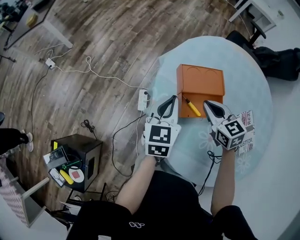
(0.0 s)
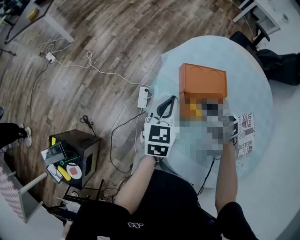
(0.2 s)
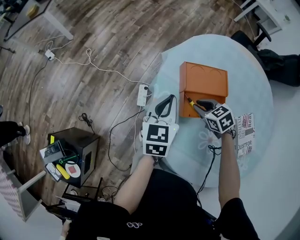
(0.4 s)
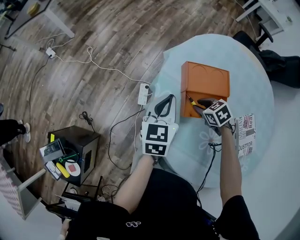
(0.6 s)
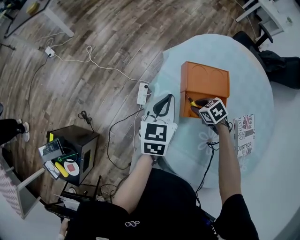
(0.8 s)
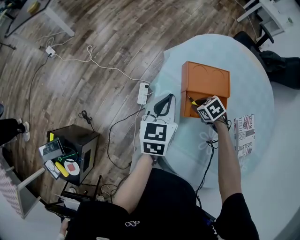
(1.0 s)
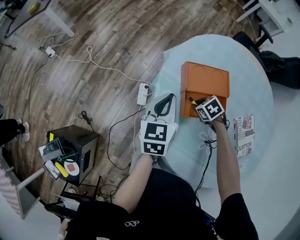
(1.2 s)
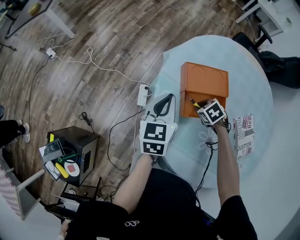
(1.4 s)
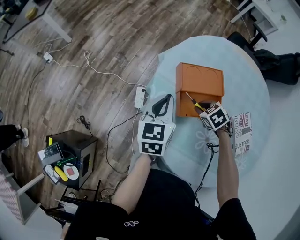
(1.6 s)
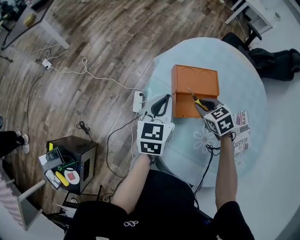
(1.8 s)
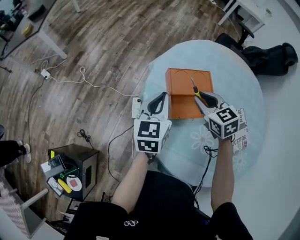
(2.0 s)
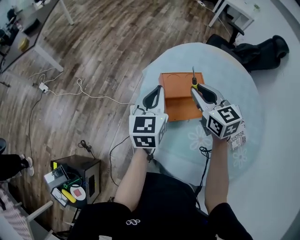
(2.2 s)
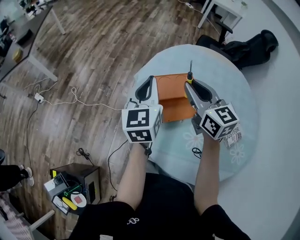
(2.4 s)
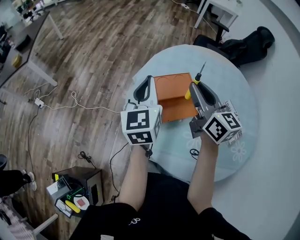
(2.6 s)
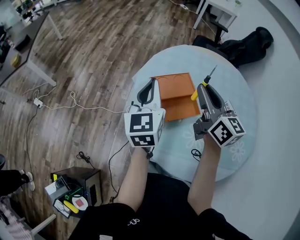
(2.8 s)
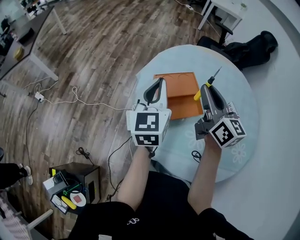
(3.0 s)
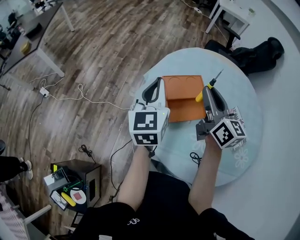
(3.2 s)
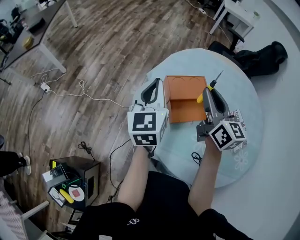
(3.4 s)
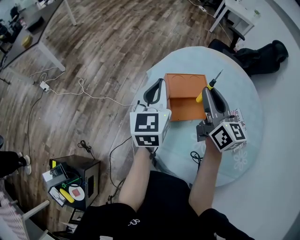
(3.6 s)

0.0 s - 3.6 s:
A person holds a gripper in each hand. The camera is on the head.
0.0 s - 1.8 s: The right gripper moves roughly 20 cm downward and comes back, and rotates some 20 degrees.
1.8 s - 3.6 s: The left gripper goes about 10 cm upward, while the right gripper shifts some 25 cm upward, and tips its fingers upward by roughly 60 degrees.

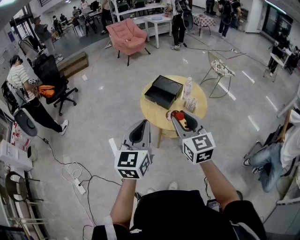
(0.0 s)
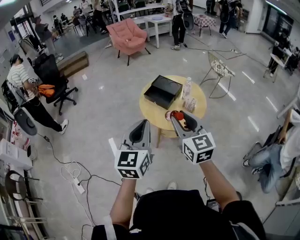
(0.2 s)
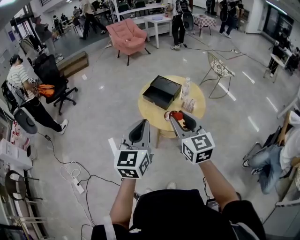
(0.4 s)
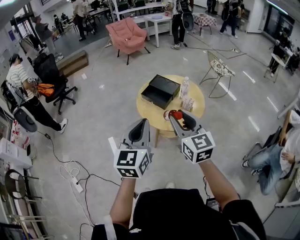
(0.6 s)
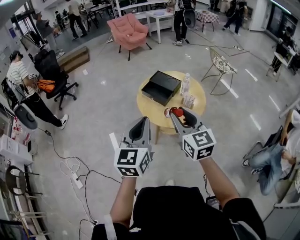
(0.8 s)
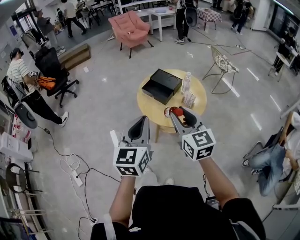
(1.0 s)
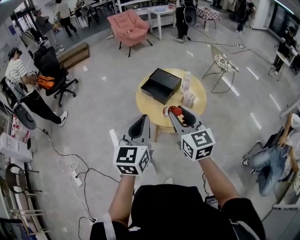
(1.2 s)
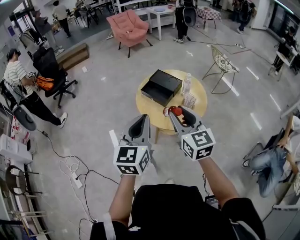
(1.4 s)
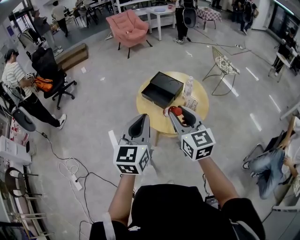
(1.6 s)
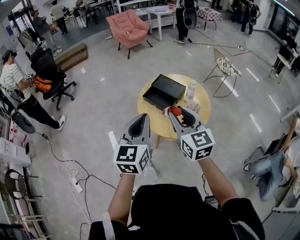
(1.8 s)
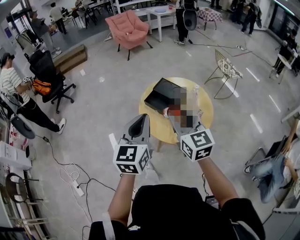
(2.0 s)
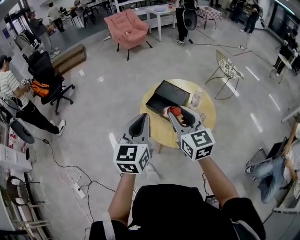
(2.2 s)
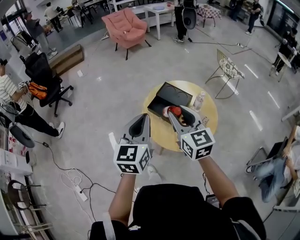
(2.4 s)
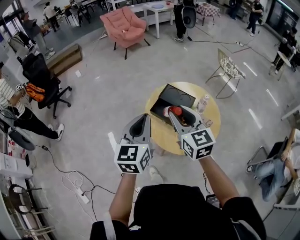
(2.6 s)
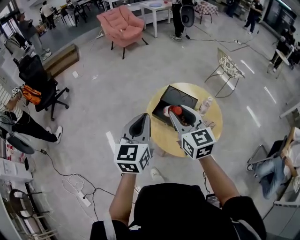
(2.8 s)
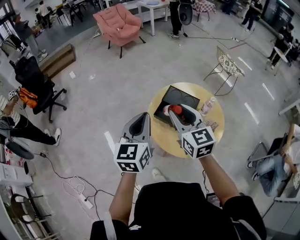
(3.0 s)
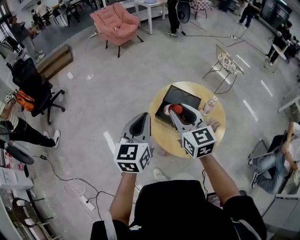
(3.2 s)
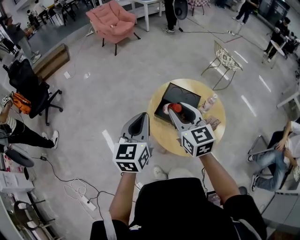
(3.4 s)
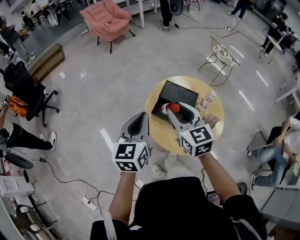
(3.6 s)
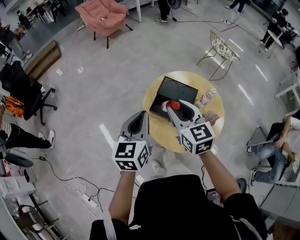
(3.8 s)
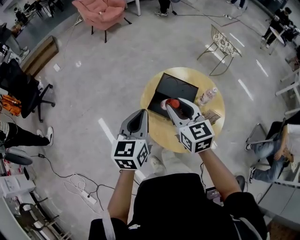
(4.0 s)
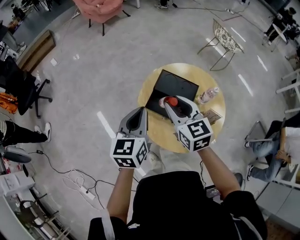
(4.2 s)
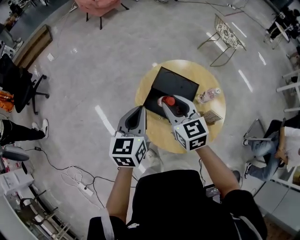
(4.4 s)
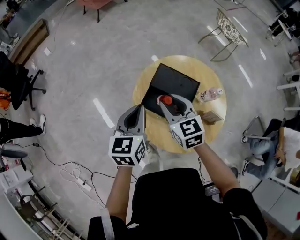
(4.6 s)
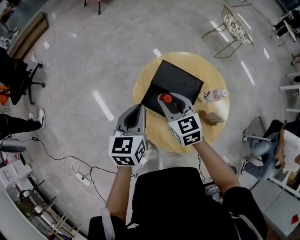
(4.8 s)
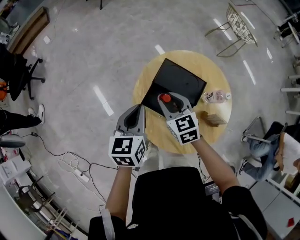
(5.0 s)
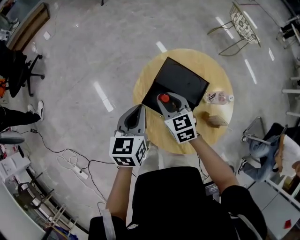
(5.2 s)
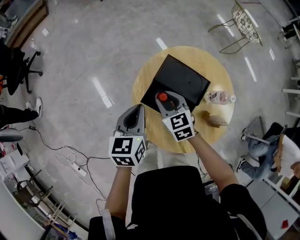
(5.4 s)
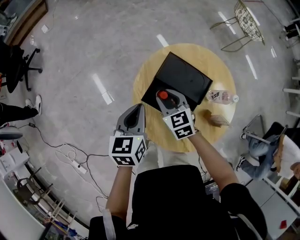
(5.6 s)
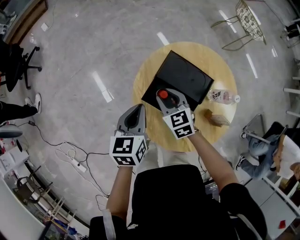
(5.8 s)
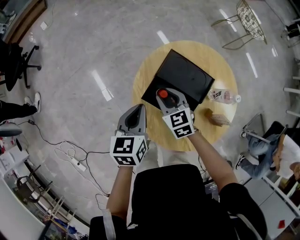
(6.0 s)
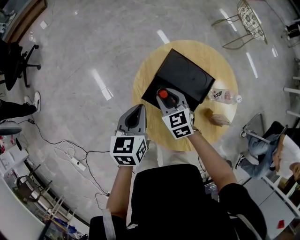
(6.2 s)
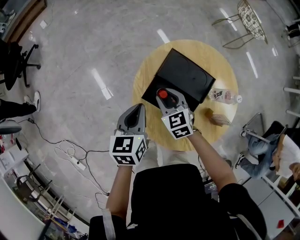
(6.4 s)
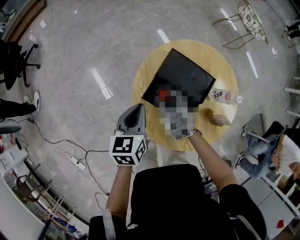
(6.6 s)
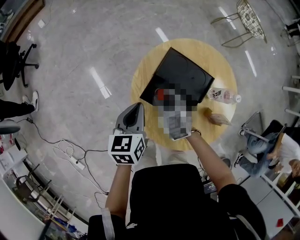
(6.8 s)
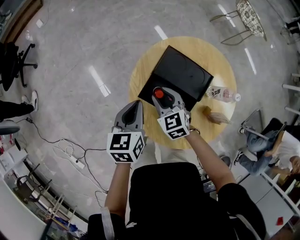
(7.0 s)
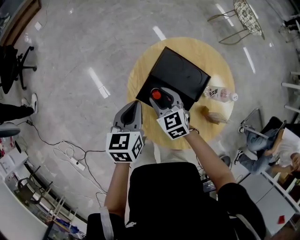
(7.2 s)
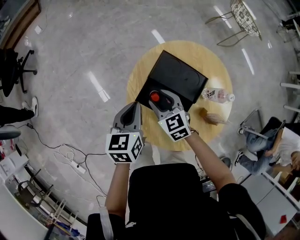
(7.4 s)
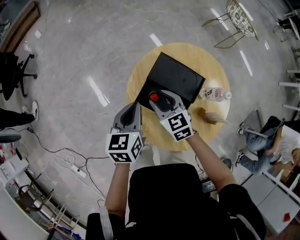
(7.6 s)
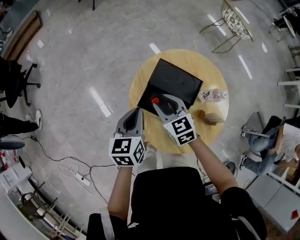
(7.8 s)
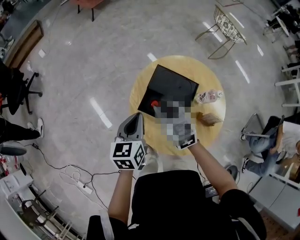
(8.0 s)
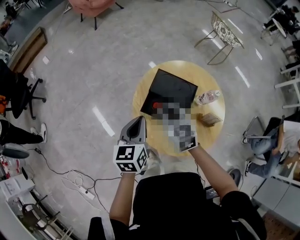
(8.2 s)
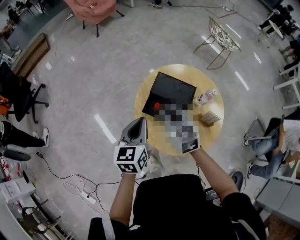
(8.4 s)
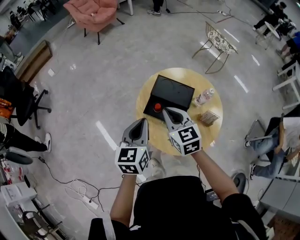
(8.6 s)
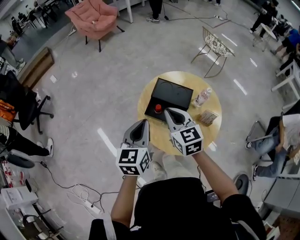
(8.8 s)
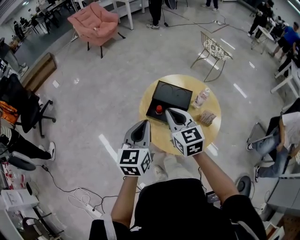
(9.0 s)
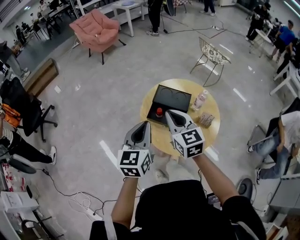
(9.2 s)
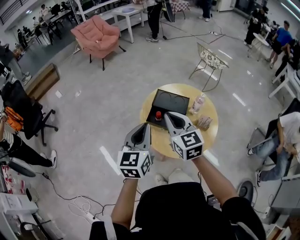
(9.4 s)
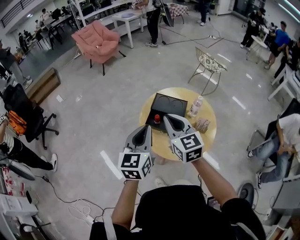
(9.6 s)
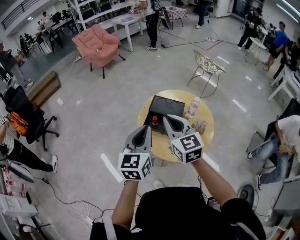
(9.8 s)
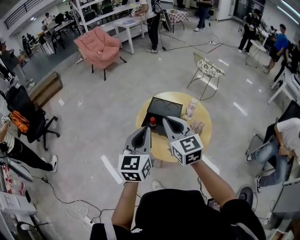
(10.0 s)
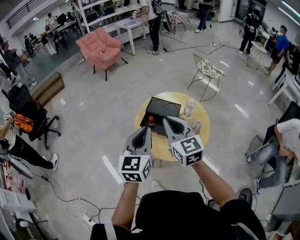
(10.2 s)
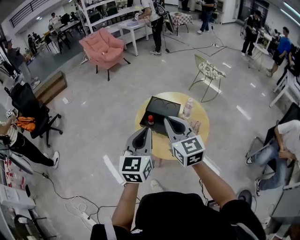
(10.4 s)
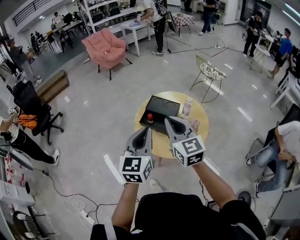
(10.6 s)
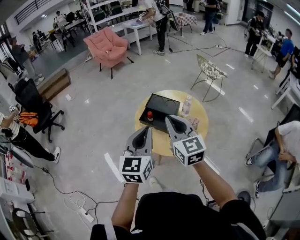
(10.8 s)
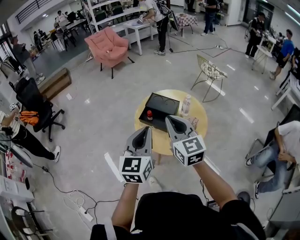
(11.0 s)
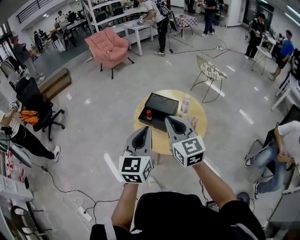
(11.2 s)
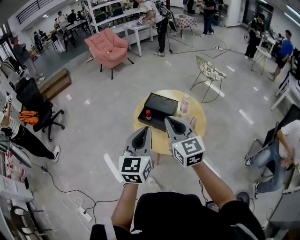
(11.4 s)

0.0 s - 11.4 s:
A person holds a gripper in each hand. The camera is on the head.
0.0 s - 1.4 s: The left gripper ends up about 5 cm from where it was; the right gripper ends up roughly 5 cm from where it was.
1.4 s - 2.8 s: The two grippers go approximately 30 cm forward and to the left.
2.8 s - 4.2 s: The two grippers go roughly 15 cm forward and downward.
4.2 s - 5.6 s: The left gripper goes some 15 cm downward and forward, while the right gripper travels downward by some 20 cm, and changes its angle by about 20 degrees.
5.6 s - 7.2 s: There are only small adjustments of the grippers.
7.2 s - 8.6 s: Both grippers move upward and backward, some 20 cm. The right gripper turns by approximately 20 degrees, and closes.
8.6 s - 10.0 s: The left gripper moves upward, backward and to the right, some 15 cm, while the right gripper travels upward and backward by roughly 20 cm.
10.0 s - 11.4 s: Both grippers move backward and to the right, roughly 10 cm.

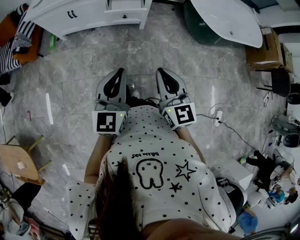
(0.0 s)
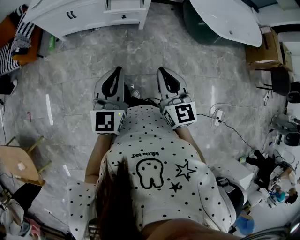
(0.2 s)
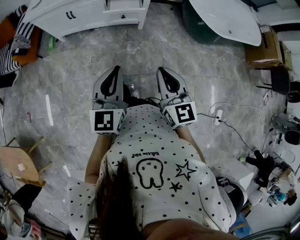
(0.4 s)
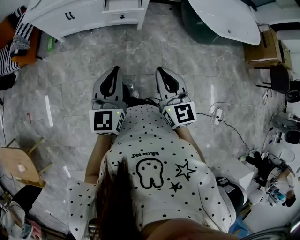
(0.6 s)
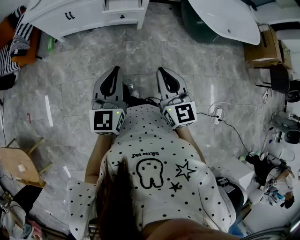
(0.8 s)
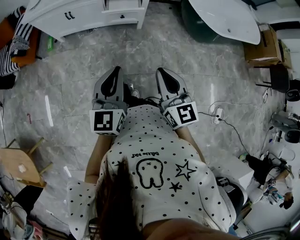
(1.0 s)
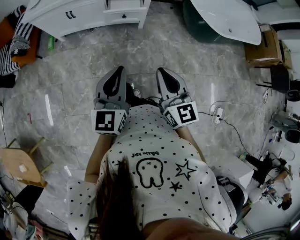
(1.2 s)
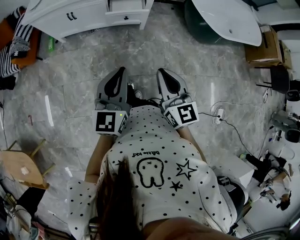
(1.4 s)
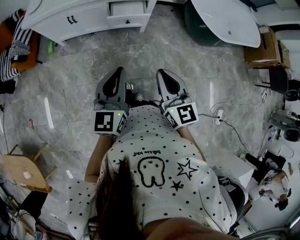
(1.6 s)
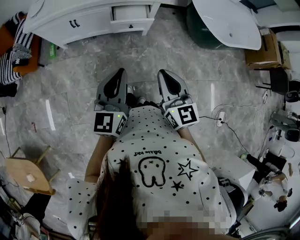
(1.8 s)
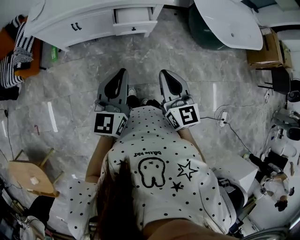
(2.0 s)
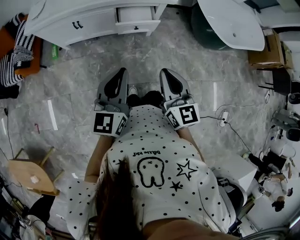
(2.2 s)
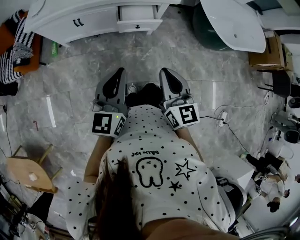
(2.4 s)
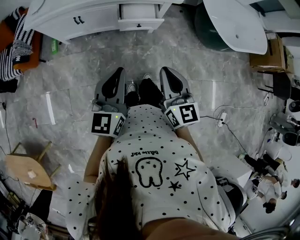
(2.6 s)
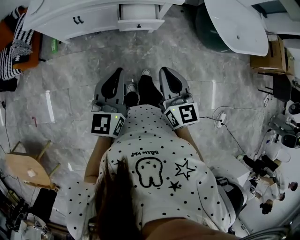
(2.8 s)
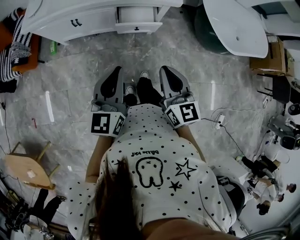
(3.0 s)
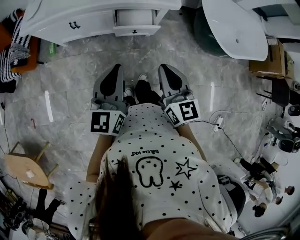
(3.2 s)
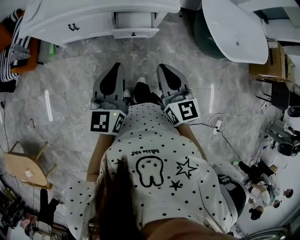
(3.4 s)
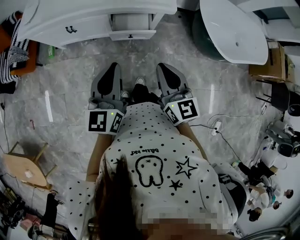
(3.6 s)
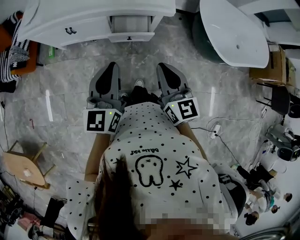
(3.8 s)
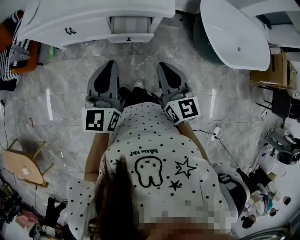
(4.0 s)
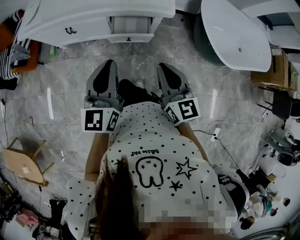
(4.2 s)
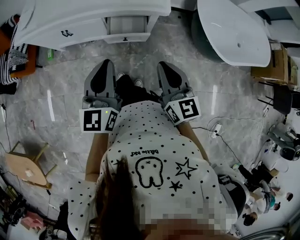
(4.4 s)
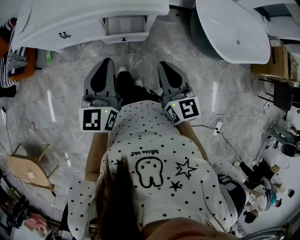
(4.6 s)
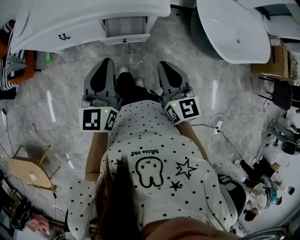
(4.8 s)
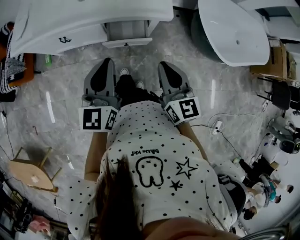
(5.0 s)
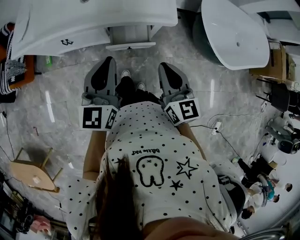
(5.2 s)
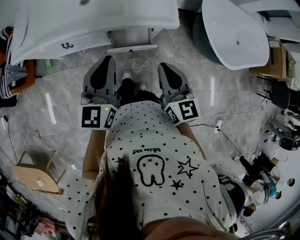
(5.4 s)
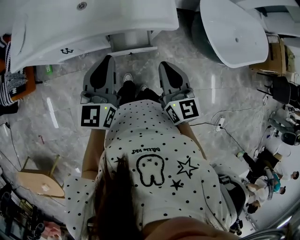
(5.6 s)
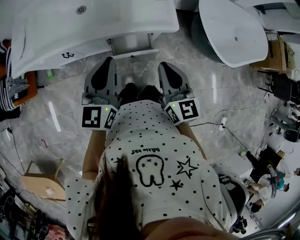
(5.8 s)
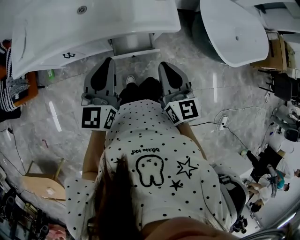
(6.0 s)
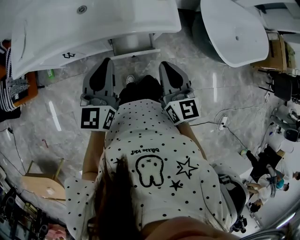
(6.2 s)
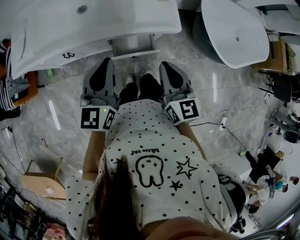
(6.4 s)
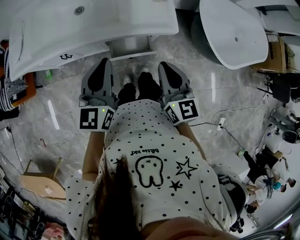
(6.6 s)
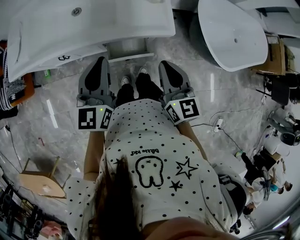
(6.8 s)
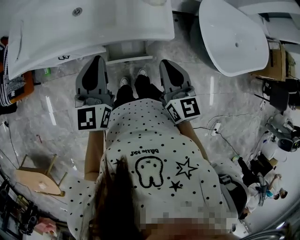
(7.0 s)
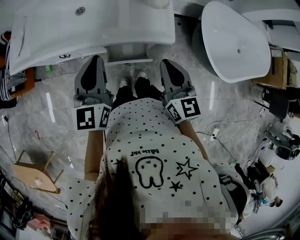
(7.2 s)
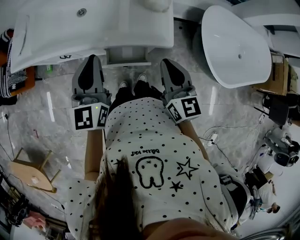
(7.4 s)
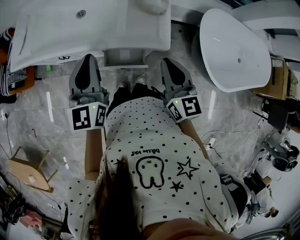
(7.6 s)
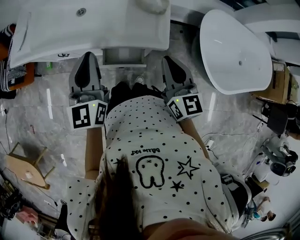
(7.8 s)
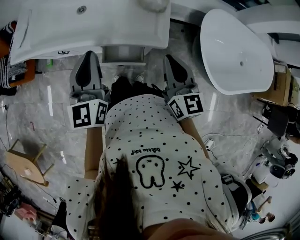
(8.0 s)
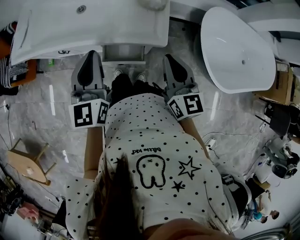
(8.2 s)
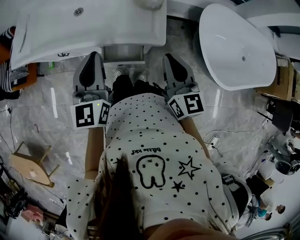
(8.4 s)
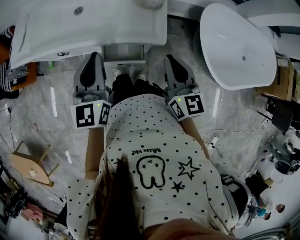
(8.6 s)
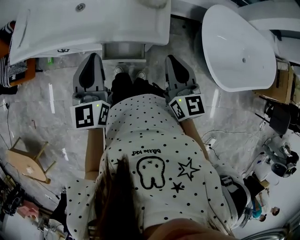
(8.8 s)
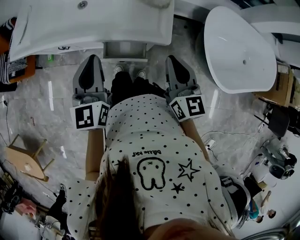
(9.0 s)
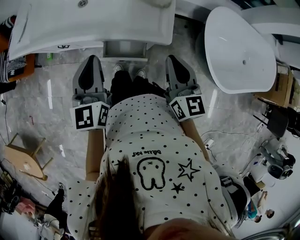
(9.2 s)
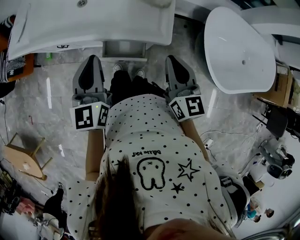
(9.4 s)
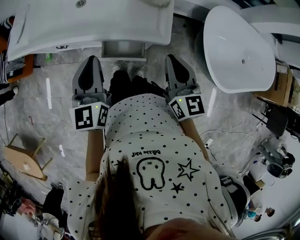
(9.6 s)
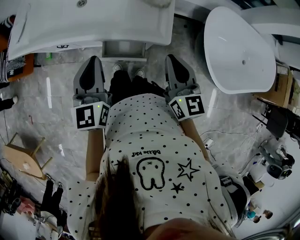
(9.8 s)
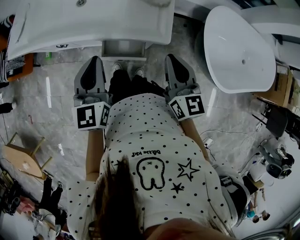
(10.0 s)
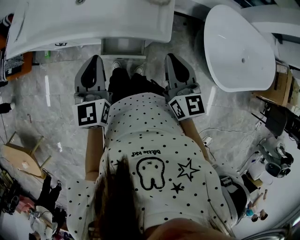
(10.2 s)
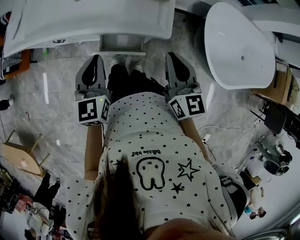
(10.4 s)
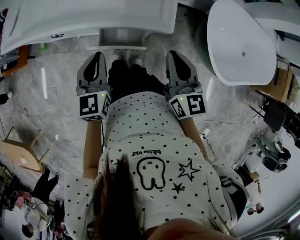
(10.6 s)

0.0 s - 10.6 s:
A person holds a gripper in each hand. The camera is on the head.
0.0 s - 1.6 s: Both grippers move forward and to the left, about 10 cm.
1.6 s - 3.0 s: Both grippers move forward, some 15 cm.
3.0 s - 4.6 s: The left gripper moves forward and to the right, about 15 cm; the right gripper is displaced to the right and forward by some 15 cm.
4.6 s - 6.0 s: The two grippers go approximately 15 cm forward and to the left.
6.0 s - 7.6 s: The left gripper travels forward by some 5 cm, and changes its angle by some 20 degrees. The right gripper shifts about 15 cm forward and to the right.
7.6 s - 9.0 s: The grippers stay close to where they were, moving slightly.
9.0 s - 10.6 s: The left gripper moves downward, roughly 10 cm.
